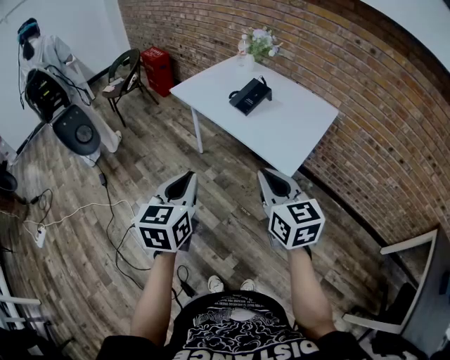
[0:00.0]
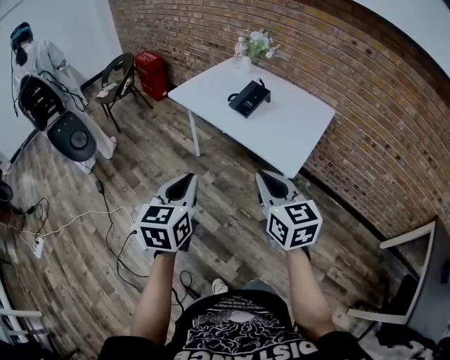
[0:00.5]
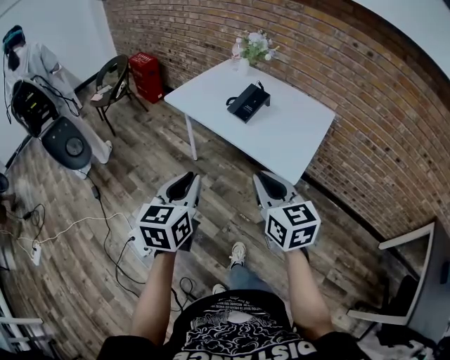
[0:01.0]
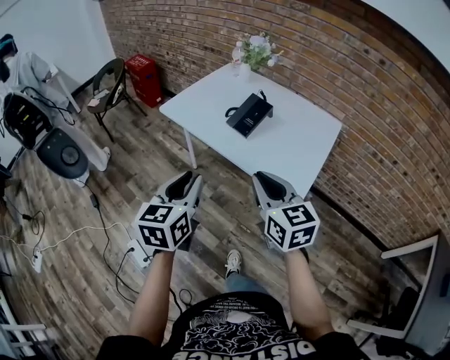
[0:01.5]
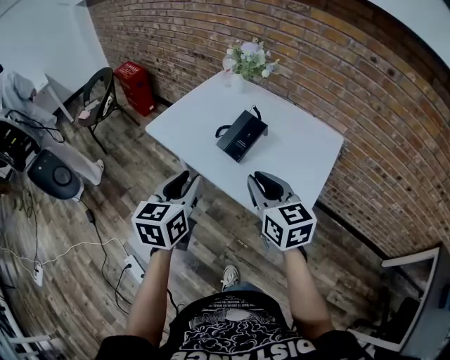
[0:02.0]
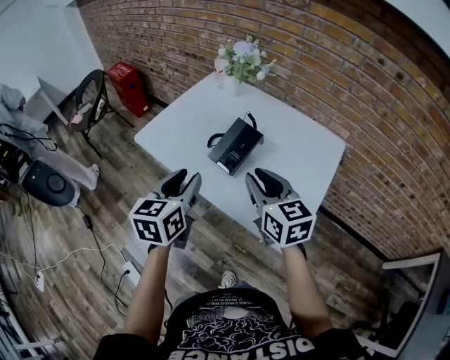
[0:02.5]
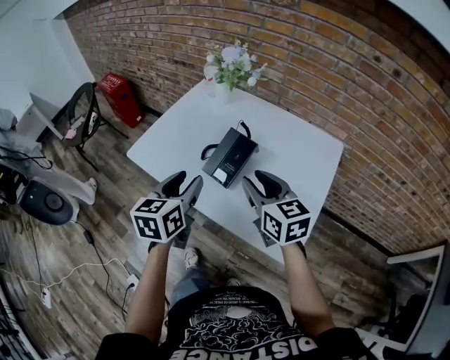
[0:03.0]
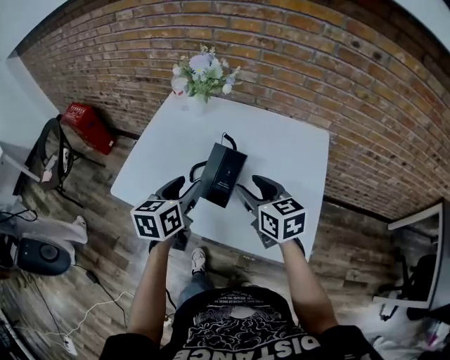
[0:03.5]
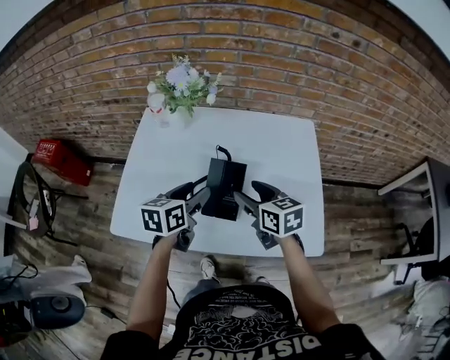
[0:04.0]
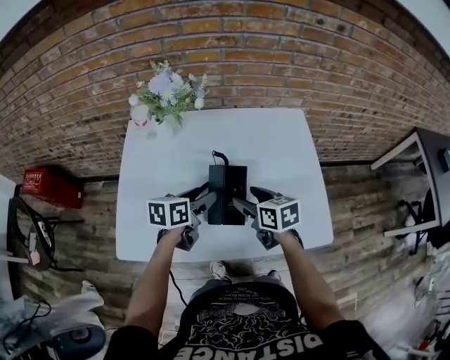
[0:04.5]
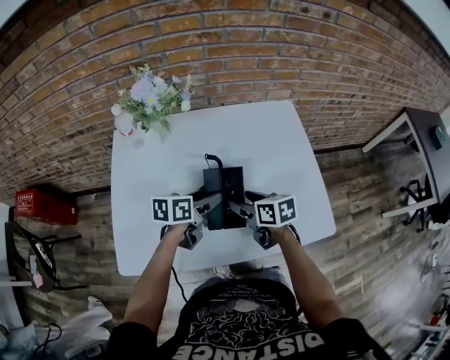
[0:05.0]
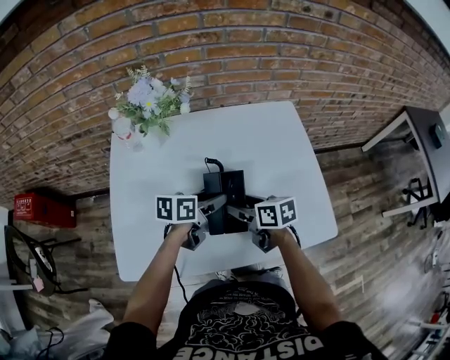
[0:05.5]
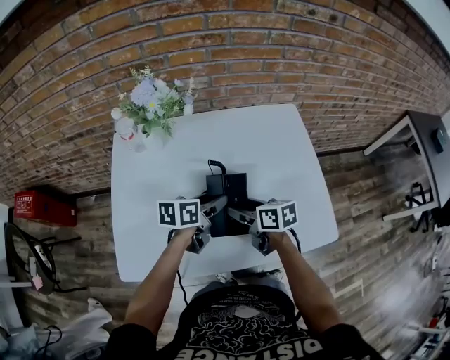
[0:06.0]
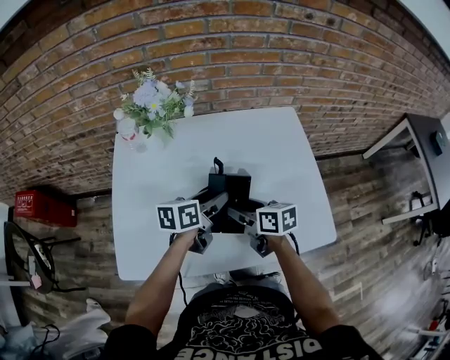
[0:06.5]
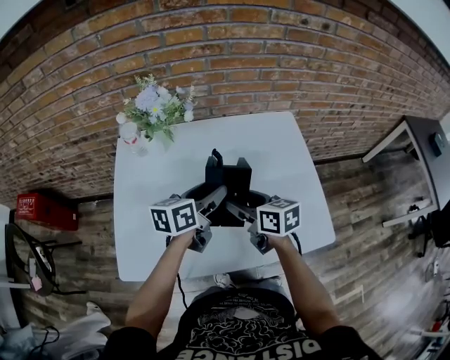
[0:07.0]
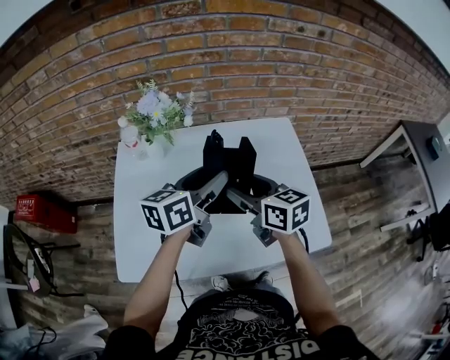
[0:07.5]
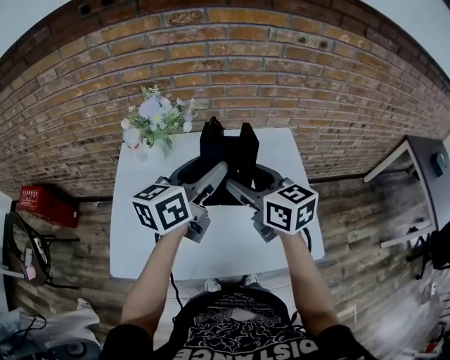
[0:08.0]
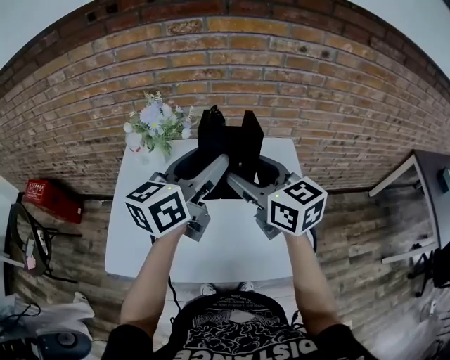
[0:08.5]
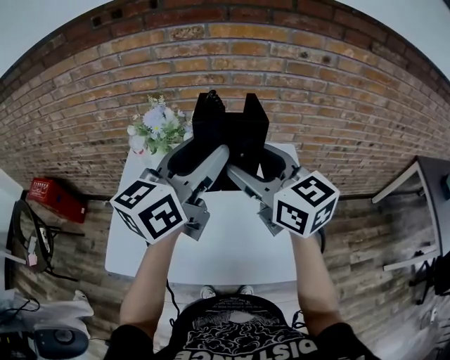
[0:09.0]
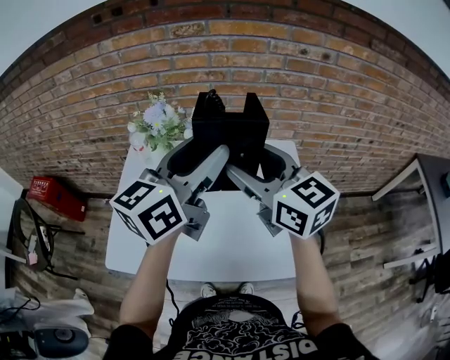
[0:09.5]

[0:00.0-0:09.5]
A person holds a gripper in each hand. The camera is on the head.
0:00.0 to 0:02.0: Both grippers travel together forward, about 30 cm.
0:02.0 to 0:04.0: The left gripper moves about 35 cm, swivels approximately 40 degrees, and opens. The right gripper changes place by approximately 25 cm, turns by some 30 degrees, and opens.
0:04.0 to 0:05.5: The right gripper is displaced downward by roughly 10 cm, and swivels some 20 degrees; the left gripper shifts approximately 10 cm downward and forward, and turns by approximately 30 degrees.
0:05.5 to 0:07.5: The two grippers go approximately 20 cm upward. The right gripper swivels approximately 30 degrees; the left gripper swivels about 30 degrees.
0:07.5 to 0:09.5: Both grippers move upward, some 20 cm. The left gripper swivels about 30 degrees. Meanwhile the right gripper turns by roughly 30 degrees.

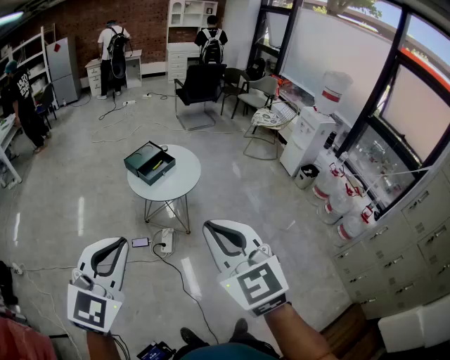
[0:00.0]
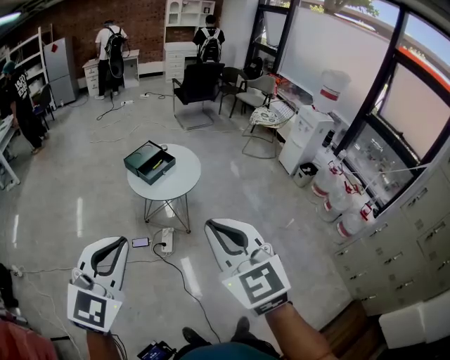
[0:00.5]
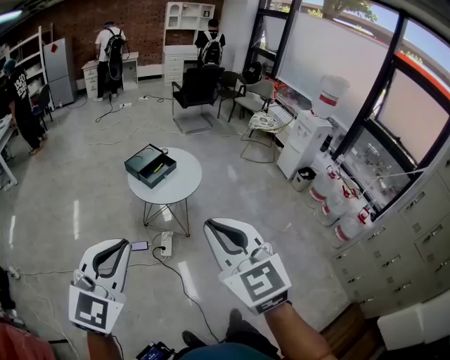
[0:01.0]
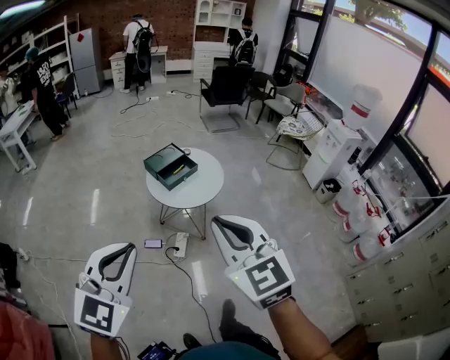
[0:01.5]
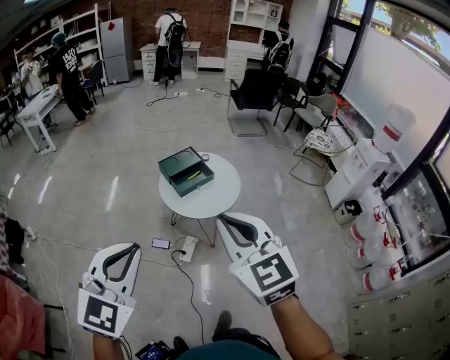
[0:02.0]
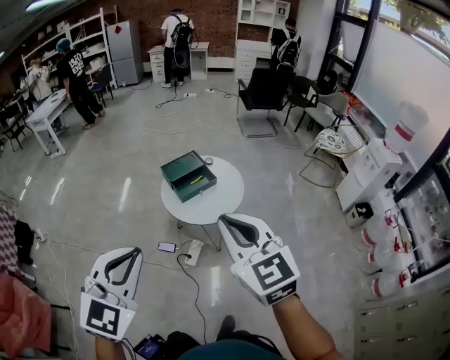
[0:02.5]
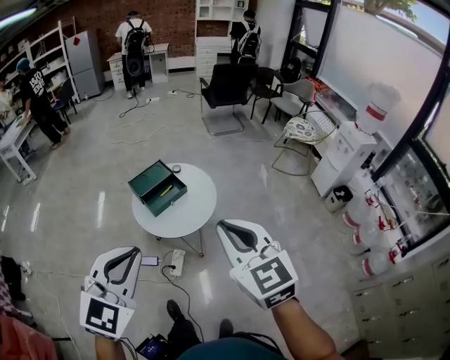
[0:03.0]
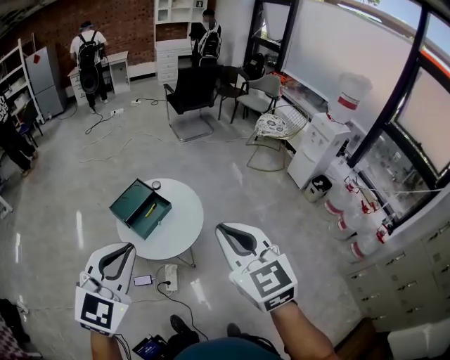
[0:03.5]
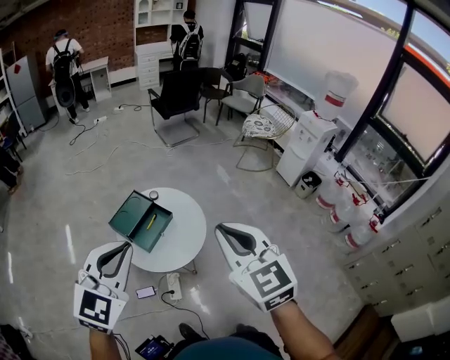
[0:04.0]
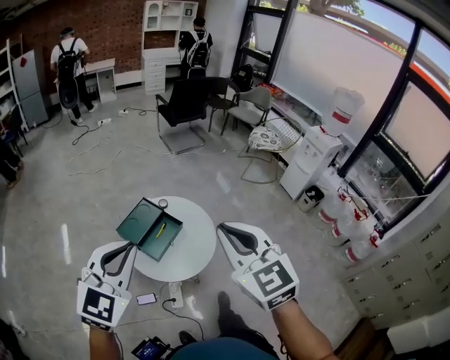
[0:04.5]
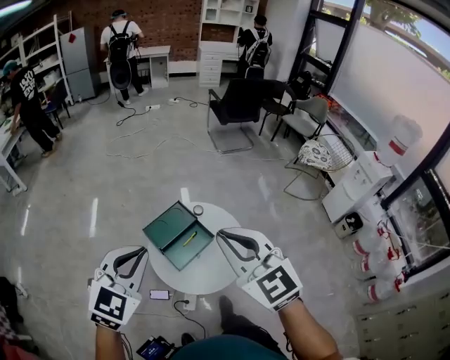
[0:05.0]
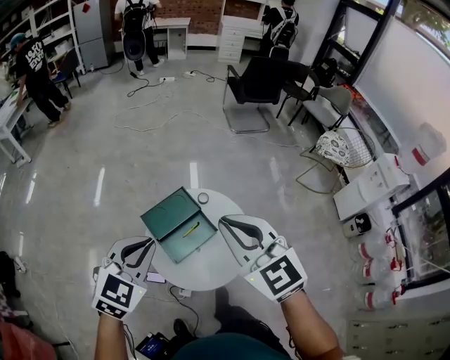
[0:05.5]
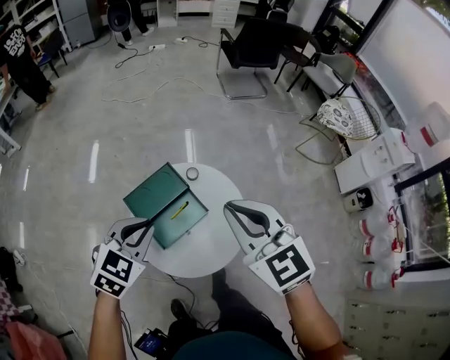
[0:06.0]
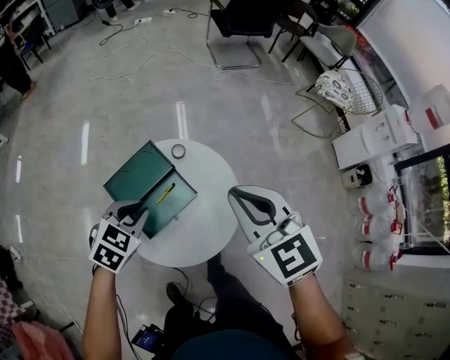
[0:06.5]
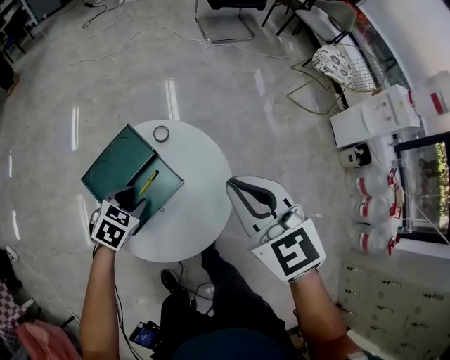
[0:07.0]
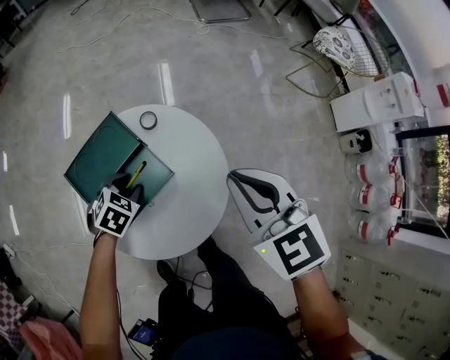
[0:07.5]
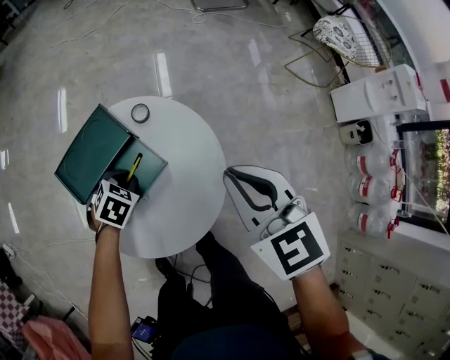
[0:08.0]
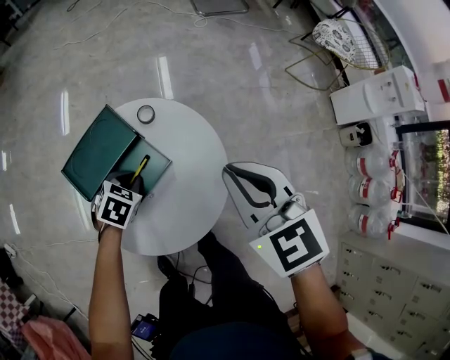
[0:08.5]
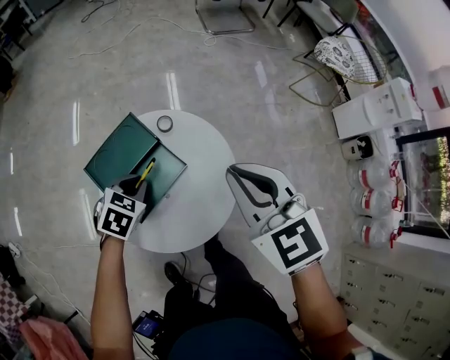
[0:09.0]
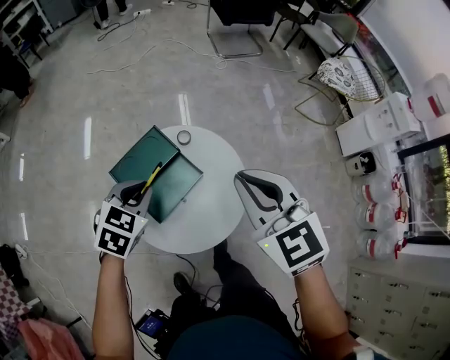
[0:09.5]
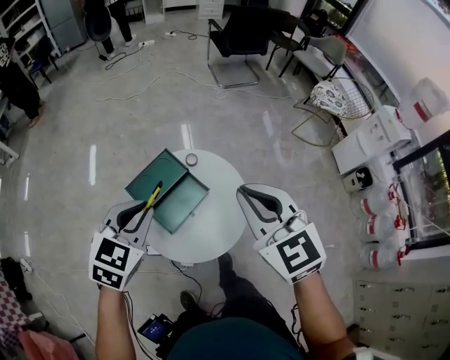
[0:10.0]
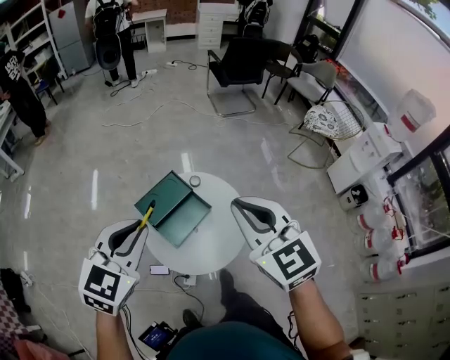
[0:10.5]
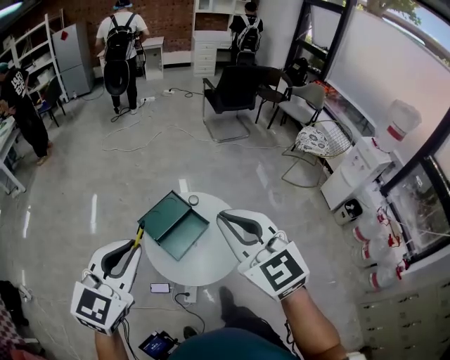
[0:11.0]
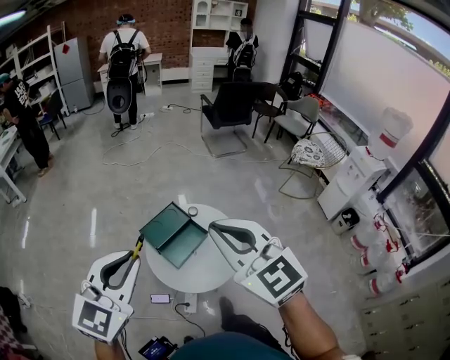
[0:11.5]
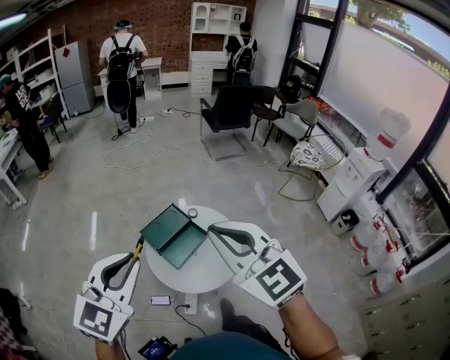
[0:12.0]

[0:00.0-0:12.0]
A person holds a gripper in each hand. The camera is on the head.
0:00.0 to 0:02.0: Both grippers move forward, approximately 20 cm.
0:02.0 to 0:04.0: The left gripper ends up some 35 cm from where it was, and changes its angle by roughly 20 degrees; the right gripper moves approximately 25 cm, and turns by roughly 30 degrees.
0:04.0 to 0:06.0: The grippers both shift forward and downward by approximately 40 cm. The left gripper swivels roughly 30 degrees; the right gripper swivels approximately 30 degrees.
0:06.0 to 0:08.0: The right gripper heads downward and to the right, covering approximately 30 cm, while the left gripper heads downward, covering some 40 cm, tips its fingers downward by approximately 30 degrees, and opens and closes again.
0:08.0 to 0:10.0: The right gripper heads upward and backward, covering roughly 30 cm. The left gripper is displaced upward by roughly 40 cm, and angles its fingers upward, by about 30 degrees.
0:10.0 to 0:12.0: The right gripper is displaced backward, upward and to the left by about 30 cm. The left gripper travels upward and backward by roughly 35 cm, and swivels some 20 degrees.

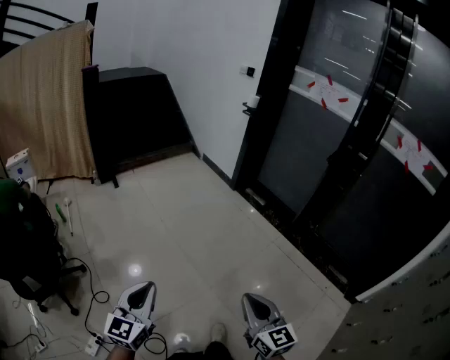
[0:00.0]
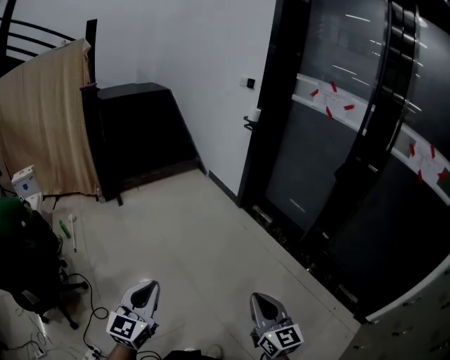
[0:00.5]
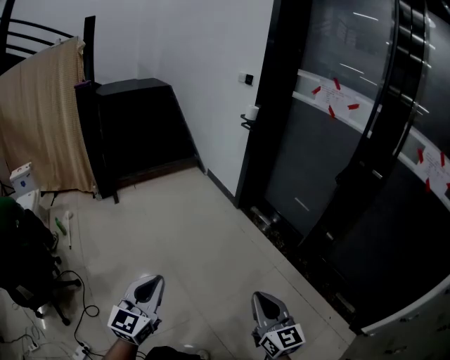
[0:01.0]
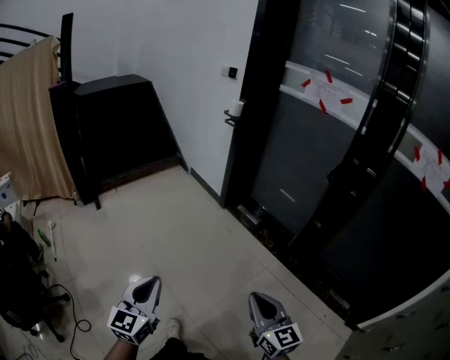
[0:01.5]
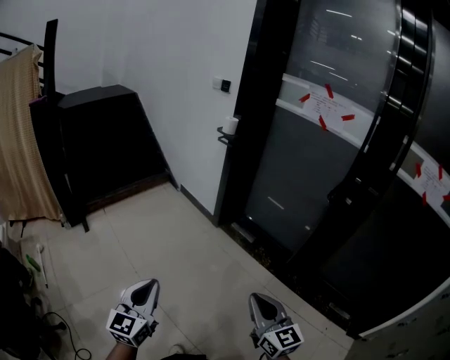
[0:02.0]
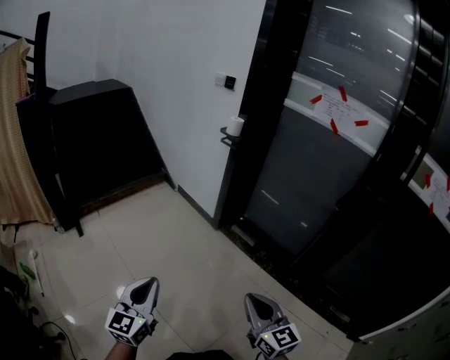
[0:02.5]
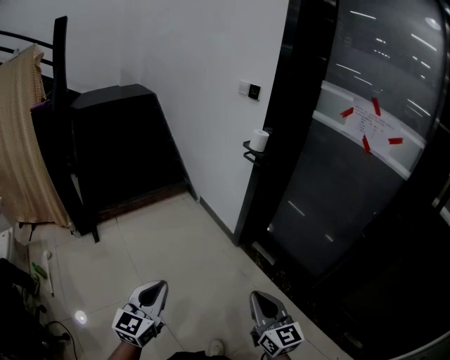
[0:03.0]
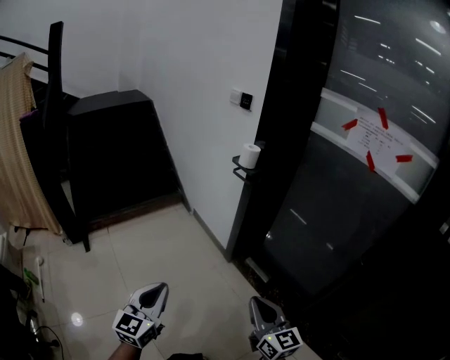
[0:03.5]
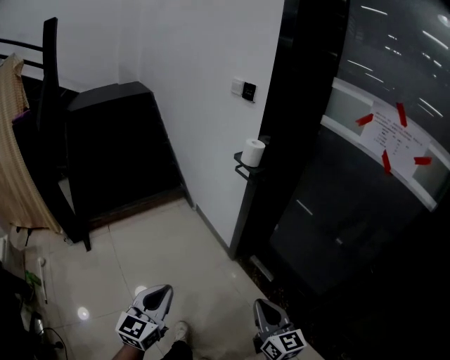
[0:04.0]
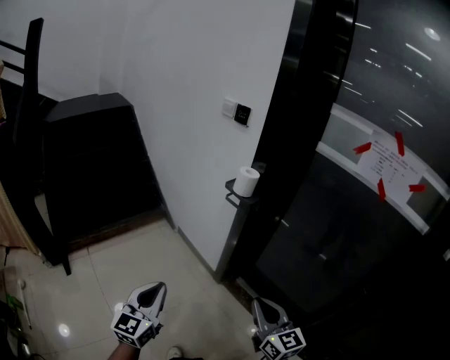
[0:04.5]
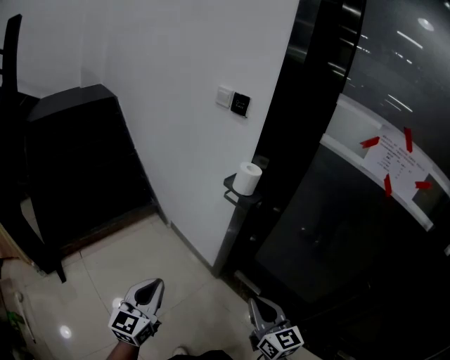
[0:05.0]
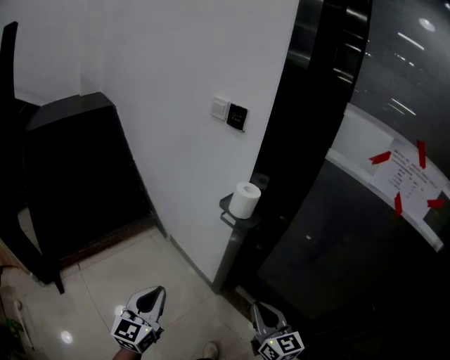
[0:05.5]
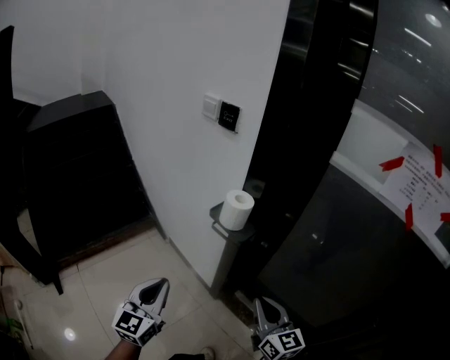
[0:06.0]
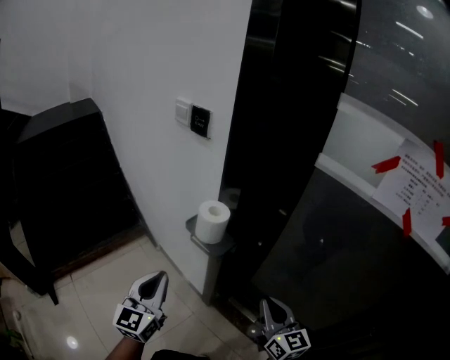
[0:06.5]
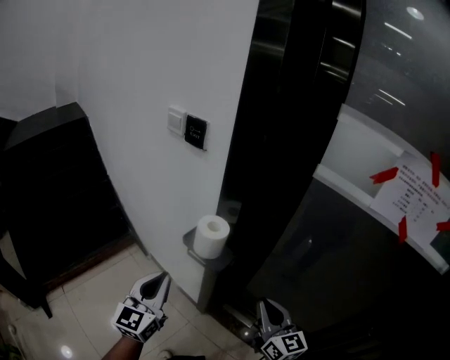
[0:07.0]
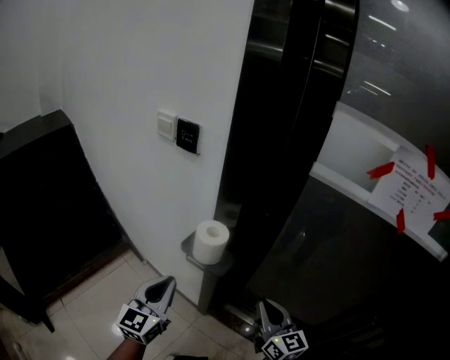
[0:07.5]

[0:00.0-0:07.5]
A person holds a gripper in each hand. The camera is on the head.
0:00.0 to 0:02.0: The pair of grippers is taken forward and to the right, some 50 cm.
0:02.0 to 0:04.0: The pair of grippers is taken forward, about 40 cm.
0:04.0 to 0:05.5: The two grippers go roughly 25 cm forward.
0:05.5 to 0:07.5: Both grippers travel together forward and to the right, about 25 cm.
